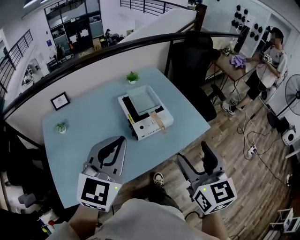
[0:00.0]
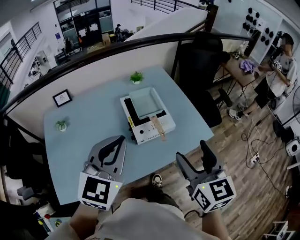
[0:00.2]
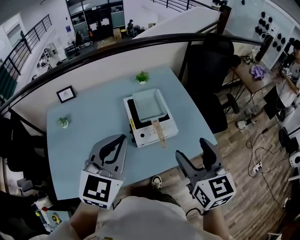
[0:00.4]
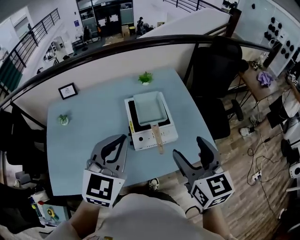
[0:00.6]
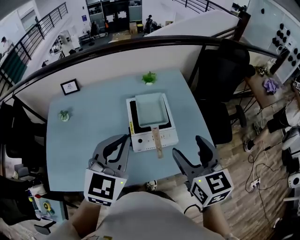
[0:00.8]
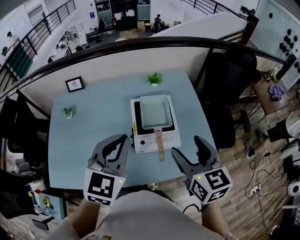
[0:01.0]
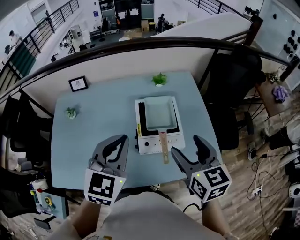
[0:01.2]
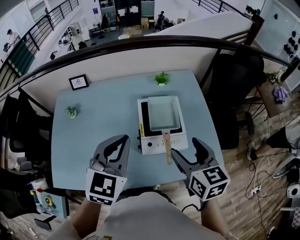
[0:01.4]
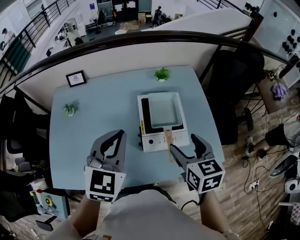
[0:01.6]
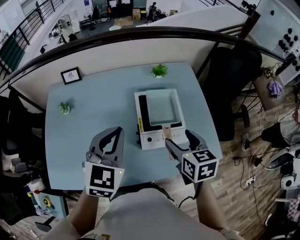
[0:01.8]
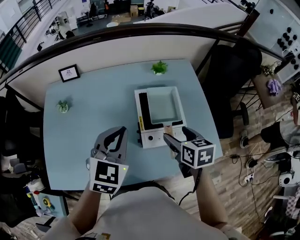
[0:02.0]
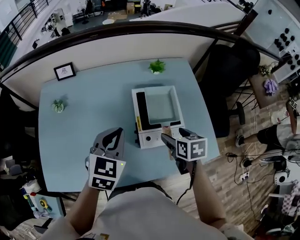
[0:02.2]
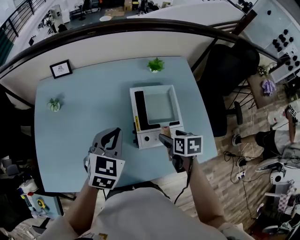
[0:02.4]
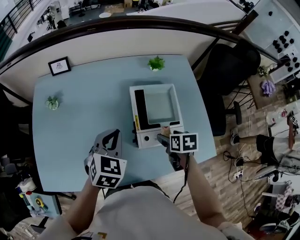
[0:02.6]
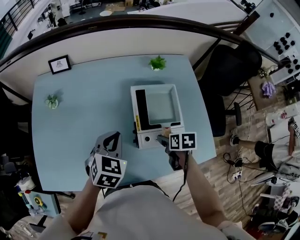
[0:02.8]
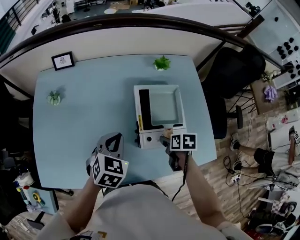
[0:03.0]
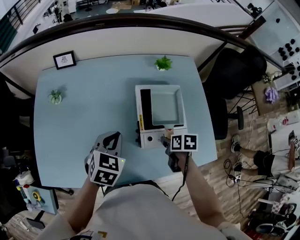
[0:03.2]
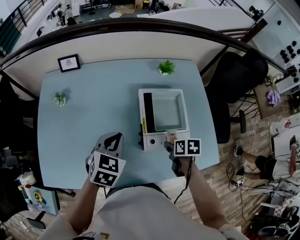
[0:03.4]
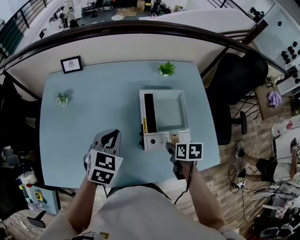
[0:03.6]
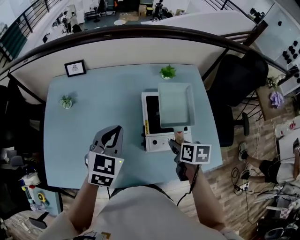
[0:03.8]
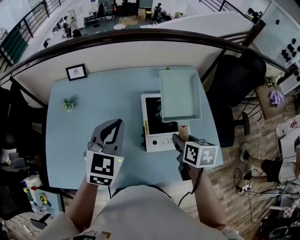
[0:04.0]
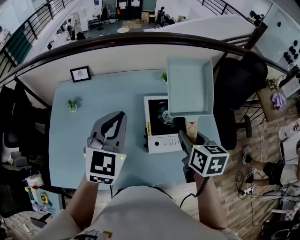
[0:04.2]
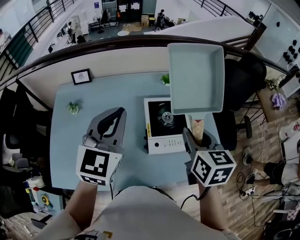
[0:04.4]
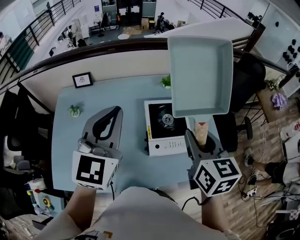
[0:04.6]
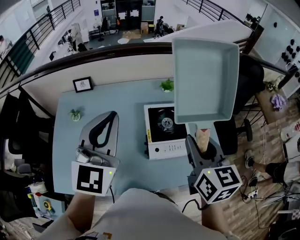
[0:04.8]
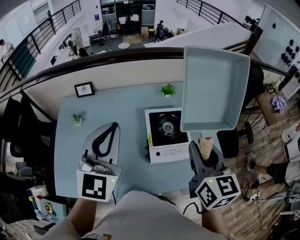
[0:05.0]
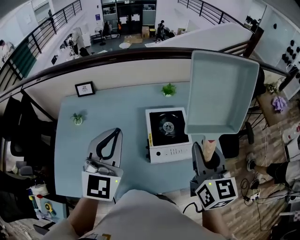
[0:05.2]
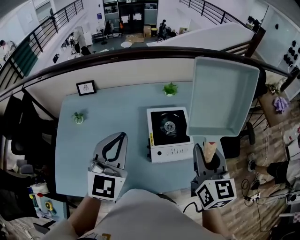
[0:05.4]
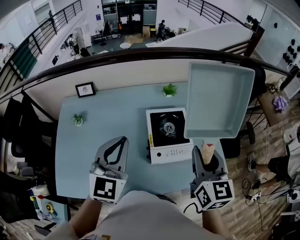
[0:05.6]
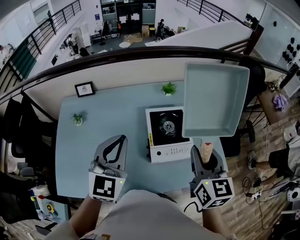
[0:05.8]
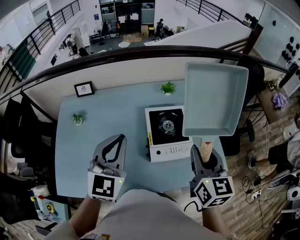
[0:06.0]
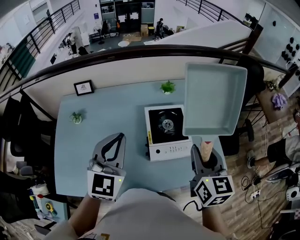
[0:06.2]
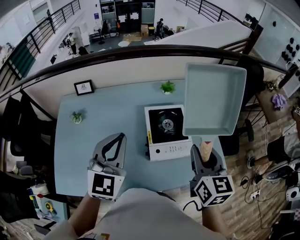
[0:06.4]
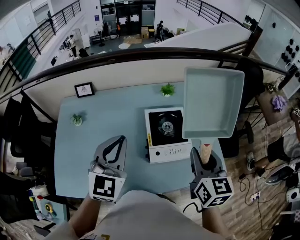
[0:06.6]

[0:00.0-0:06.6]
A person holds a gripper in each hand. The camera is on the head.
0:00.0 to 0:01.6: The right gripper changes place by roughly 30 cm, and turns by approximately 30 degrees; the left gripper changes place by about 20 cm, and changes its angle by approximately 30 degrees.
0:01.6 to 0:03.2: The two grippers go some 20 cm downward. The right gripper swivels roughly 40 degrees, and closes. The left gripper turns by about 20 degrees.
0:03.2 to 0:05.0: Both grippers move upward, approximately 30 cm. The right gripper angles its fingers upward, by some 50 degrees, while the left gripper tips its fingers upward by some 40 degrees.
0:05.0 to 0:06.6: The grippers both shift downward by some 5 cm.

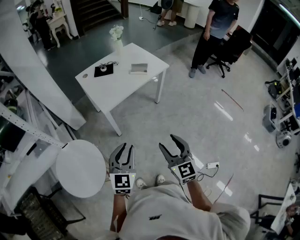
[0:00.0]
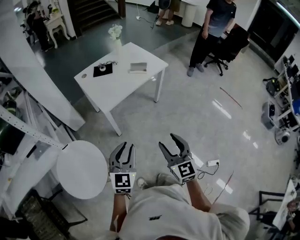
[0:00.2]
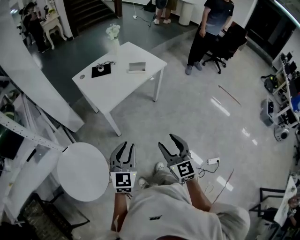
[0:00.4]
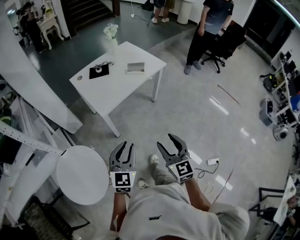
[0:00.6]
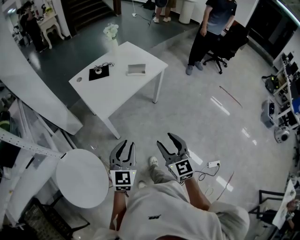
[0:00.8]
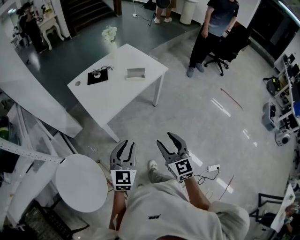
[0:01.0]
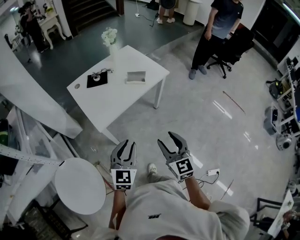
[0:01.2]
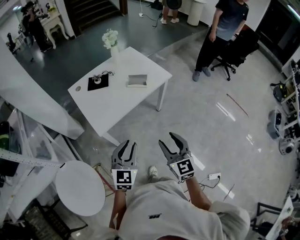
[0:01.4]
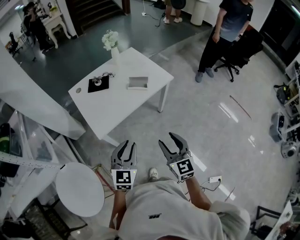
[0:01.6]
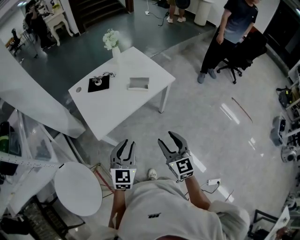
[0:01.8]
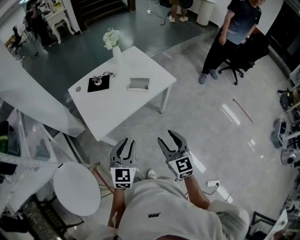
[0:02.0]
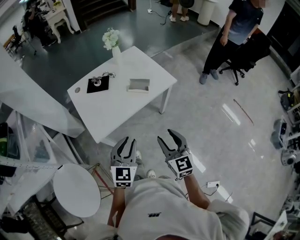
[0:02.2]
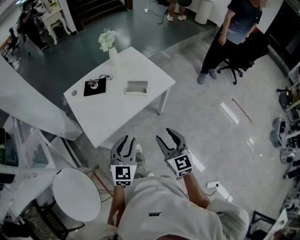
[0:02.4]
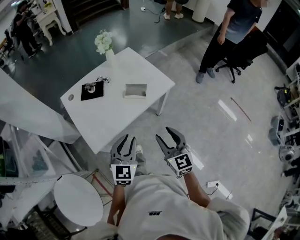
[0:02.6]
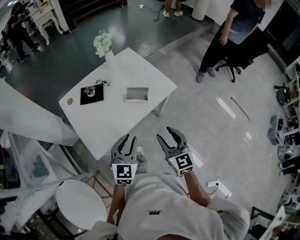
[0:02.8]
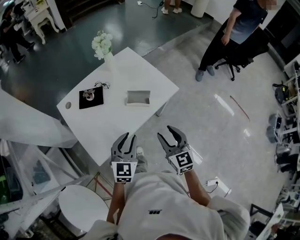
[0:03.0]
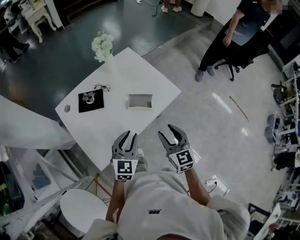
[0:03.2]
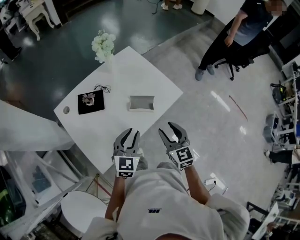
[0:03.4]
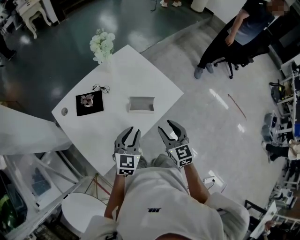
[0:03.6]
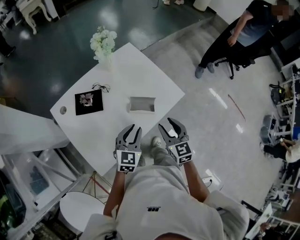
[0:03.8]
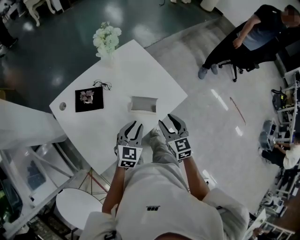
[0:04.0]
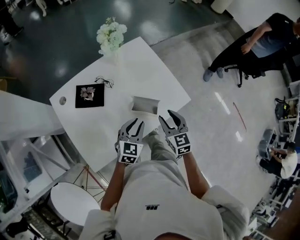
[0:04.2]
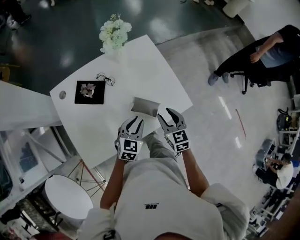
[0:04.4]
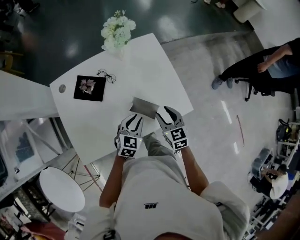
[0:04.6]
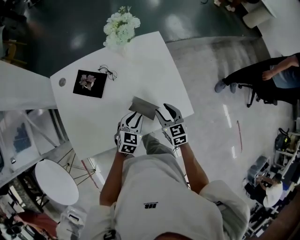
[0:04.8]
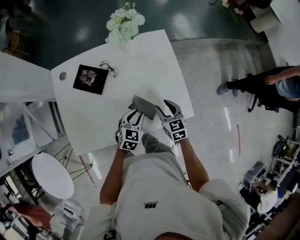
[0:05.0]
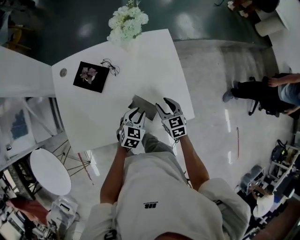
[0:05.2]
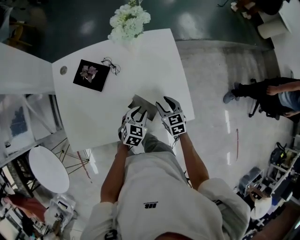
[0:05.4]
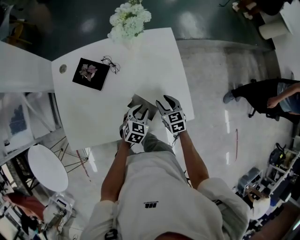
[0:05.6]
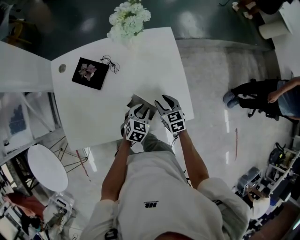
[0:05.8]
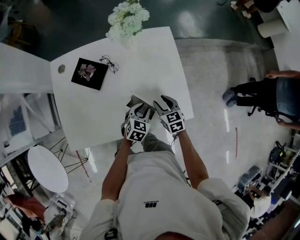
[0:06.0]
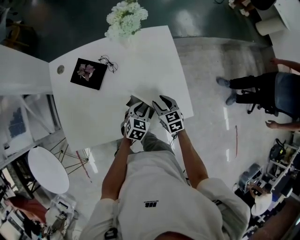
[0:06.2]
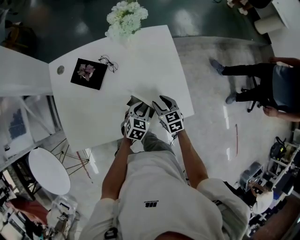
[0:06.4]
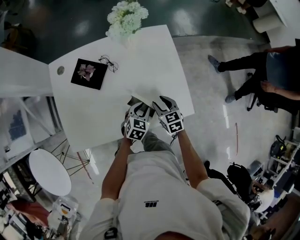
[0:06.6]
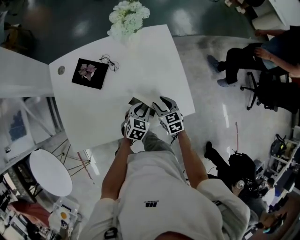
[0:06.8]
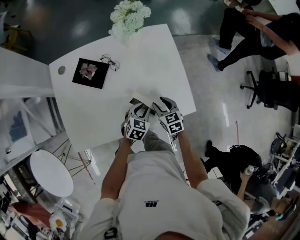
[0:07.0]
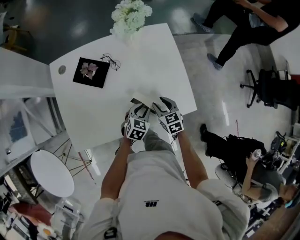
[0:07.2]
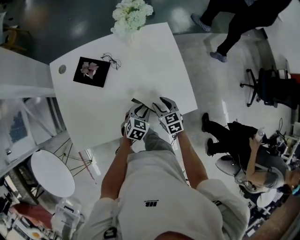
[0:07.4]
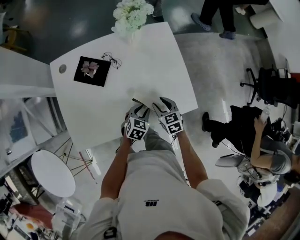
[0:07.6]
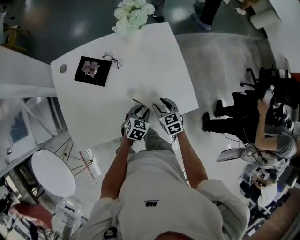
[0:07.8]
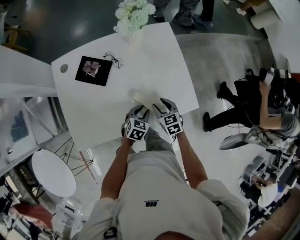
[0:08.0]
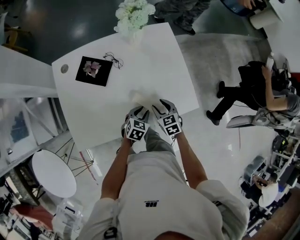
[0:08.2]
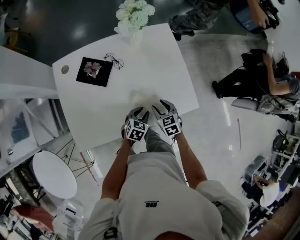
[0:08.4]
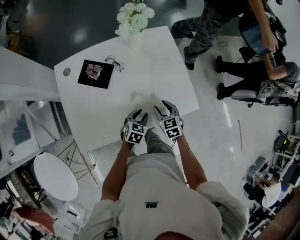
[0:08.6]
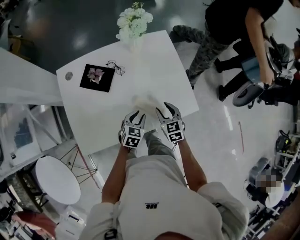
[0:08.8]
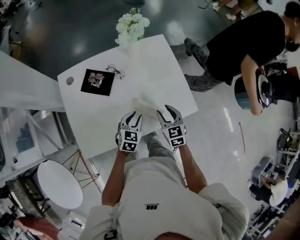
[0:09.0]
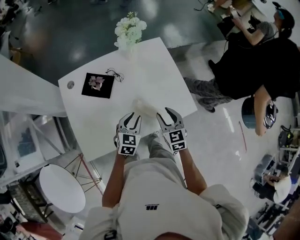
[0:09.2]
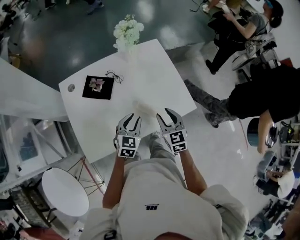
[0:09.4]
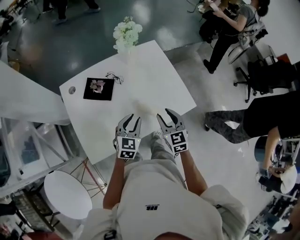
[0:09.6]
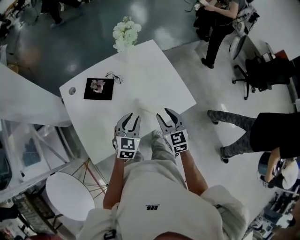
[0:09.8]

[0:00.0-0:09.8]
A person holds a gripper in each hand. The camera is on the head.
0:00.0 to 0:01.4: The grippers both shift forward by some 25 cm.
0:01.4 to 0:02.8: Both grippers move forward, some 25 cm.
0:02.8 to 0:04.2: The left gripper heads forward and downward, covering about 30 cm. The right gripper is displaced forward by some 30 cm.
0:04.2 to 0:05.6: The left gripper moves downward, forward and to the right, about 20 cm, and turns by about 20 degrees. The right gripper is displaced downward and forward by about 20 cm, and changes its angle by some 30 degrees.
0:05.6 to 0:07.0: The right gripper moves roughly 5 cm.
0:07.0 to 0:08.4: The left gripper shifts by about 5 cm.
0:08.4 to 0:09.8: The left gripper goes approximately 20 cm upward and to the left, and rotates about 20 degrees. The right gripper shifts approximately 20 cm upward and backward, and changes its angle by approximately 20 degrees.

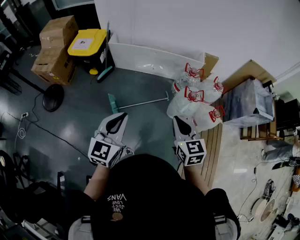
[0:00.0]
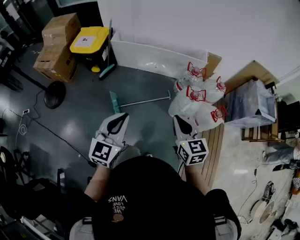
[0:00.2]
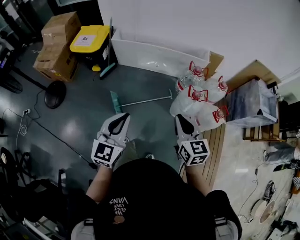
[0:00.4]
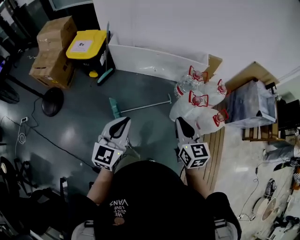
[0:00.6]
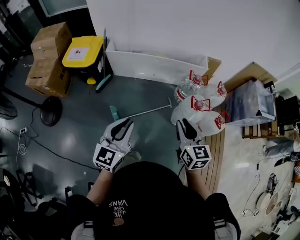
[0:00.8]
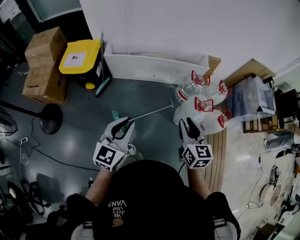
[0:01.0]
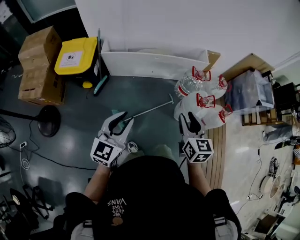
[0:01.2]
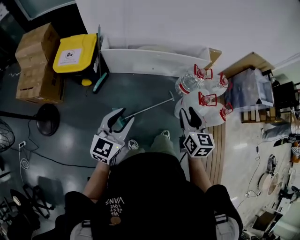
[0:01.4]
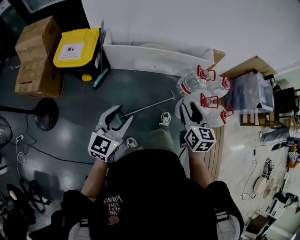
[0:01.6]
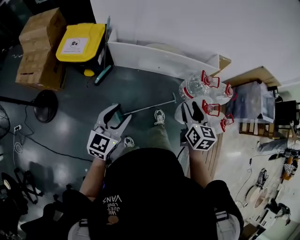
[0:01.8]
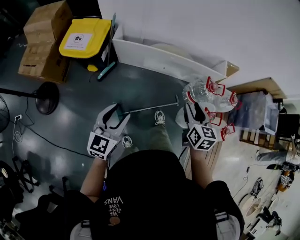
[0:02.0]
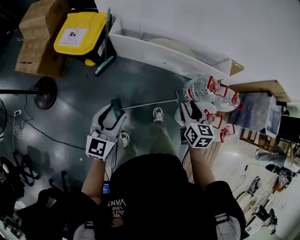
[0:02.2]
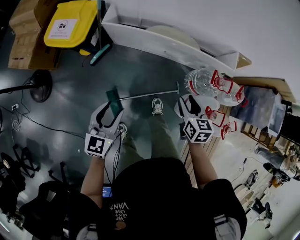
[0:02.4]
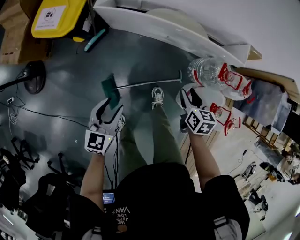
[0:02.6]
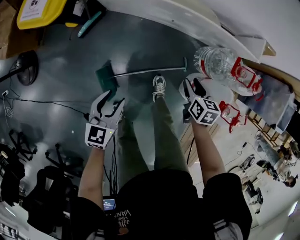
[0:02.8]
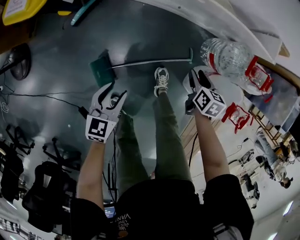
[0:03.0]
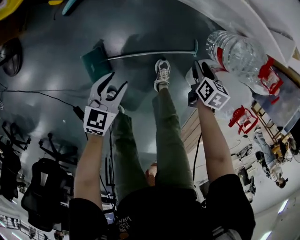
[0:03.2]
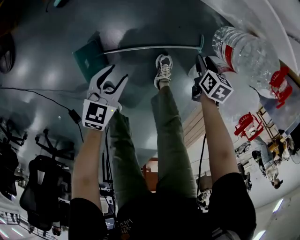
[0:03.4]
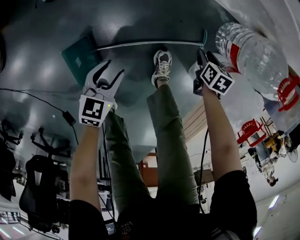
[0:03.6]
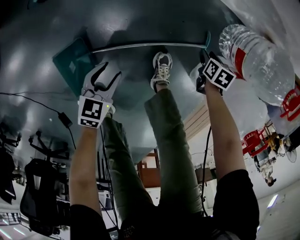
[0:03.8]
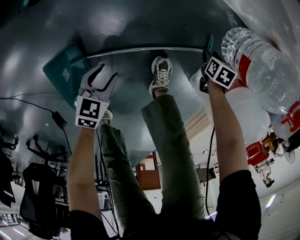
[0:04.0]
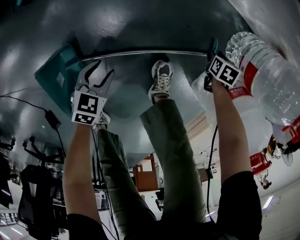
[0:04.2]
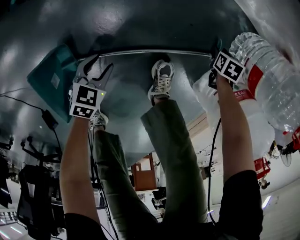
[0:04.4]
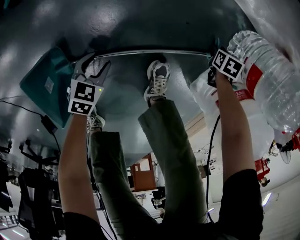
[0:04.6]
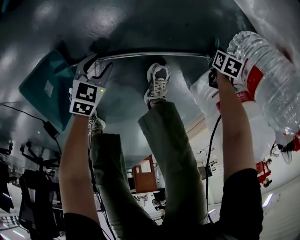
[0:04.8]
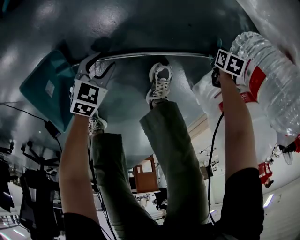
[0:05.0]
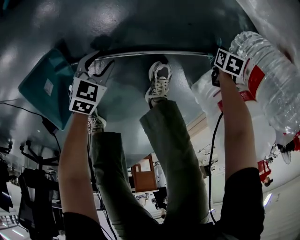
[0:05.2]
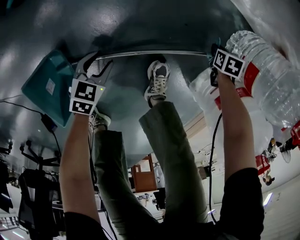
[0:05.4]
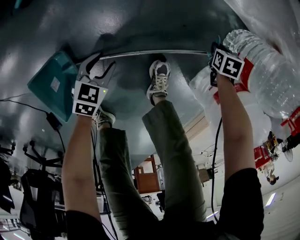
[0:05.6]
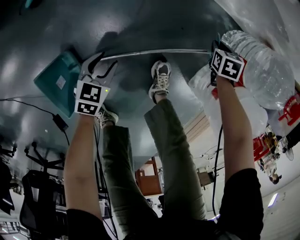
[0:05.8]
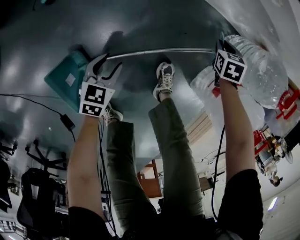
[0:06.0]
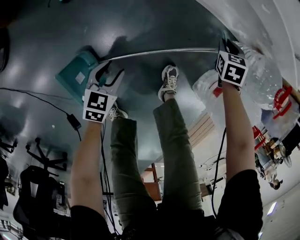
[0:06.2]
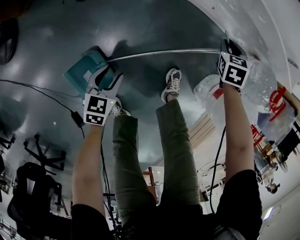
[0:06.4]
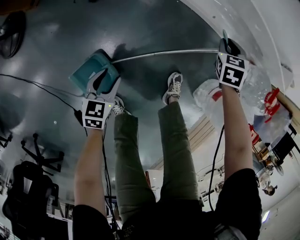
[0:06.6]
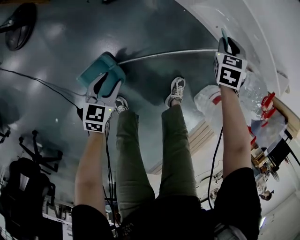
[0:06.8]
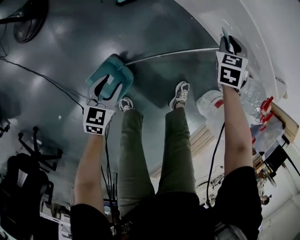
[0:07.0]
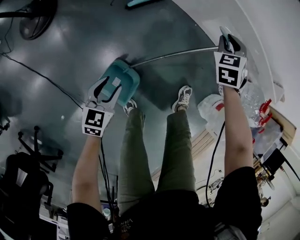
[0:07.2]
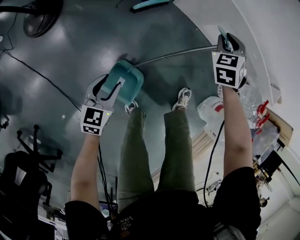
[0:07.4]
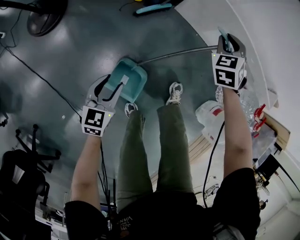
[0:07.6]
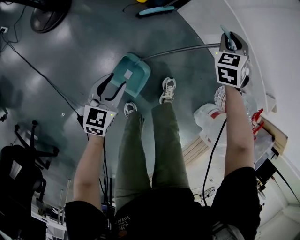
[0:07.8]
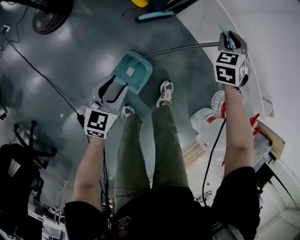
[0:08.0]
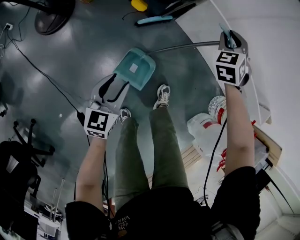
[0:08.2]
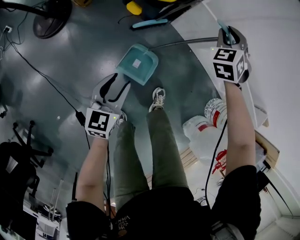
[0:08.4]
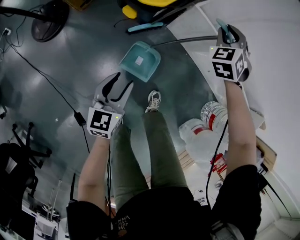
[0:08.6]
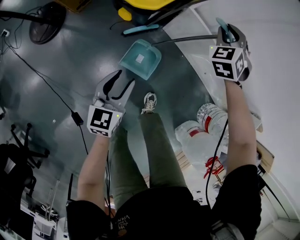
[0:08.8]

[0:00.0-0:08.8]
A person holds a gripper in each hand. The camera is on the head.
0:00.0 to 0:01.4: The two grippers go about 25 cm forward and to the left. The left gripper opens its fingers. The right gripper swivels about 20 degrees, and opens.
0:01.4 to 0:03.0: The right gripper heads downward and forward, covering approximately 50 cm, and points its fingers about 30 degrees further downward; the left gripper shifts some 40 cm downward, and swivels approximately 30 degrees.
0:03.0 to 0:04.4: Both grippers travel together downward, roughly 40 cm. The left gripper rotates about 20 degrees; the right gripper swivels some 30 degrees.
0:04.4 to 0:05.8: The left gripper is displaced upward by some 5 cm, while the right gripper goes approximately 10 cm upward, and closes its fingers.
0:05.8 to 0:07.4: The left gripper moves roughly 50 cm, and changes its angle by approximately 30 degrees, while the right gripper moves roughly 60 cm, and points its fingers about 30 degrees further upward.
0:07.4 to 0:08.8: The grippers both shift forward and upward by about 25 cm.
